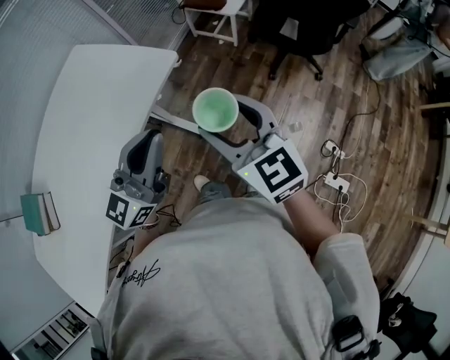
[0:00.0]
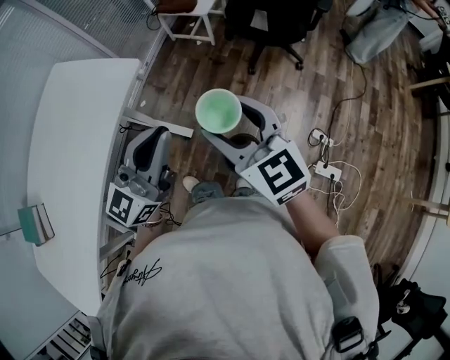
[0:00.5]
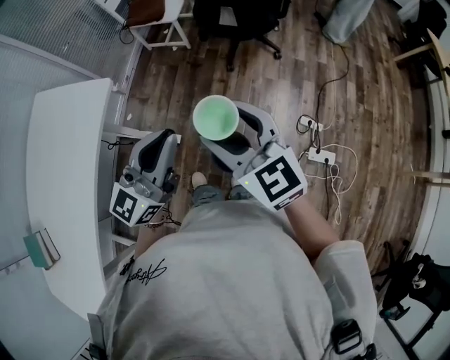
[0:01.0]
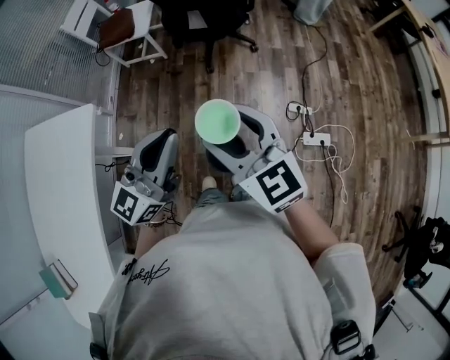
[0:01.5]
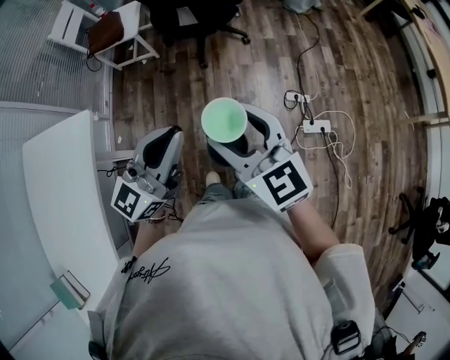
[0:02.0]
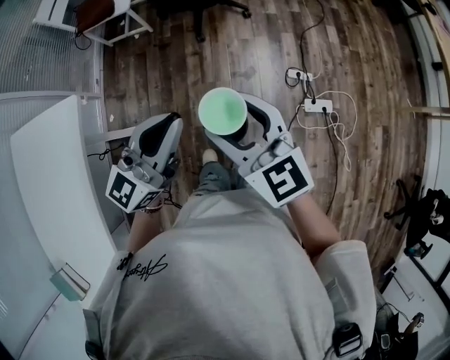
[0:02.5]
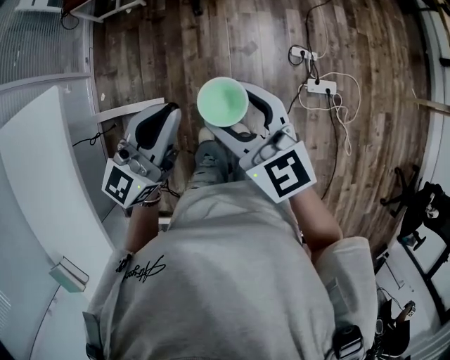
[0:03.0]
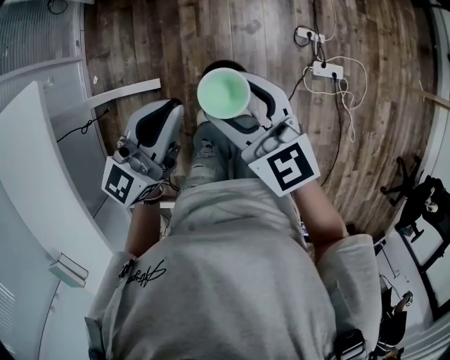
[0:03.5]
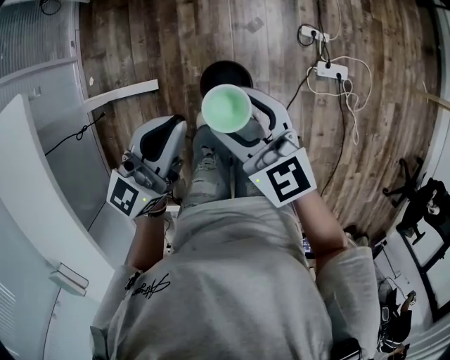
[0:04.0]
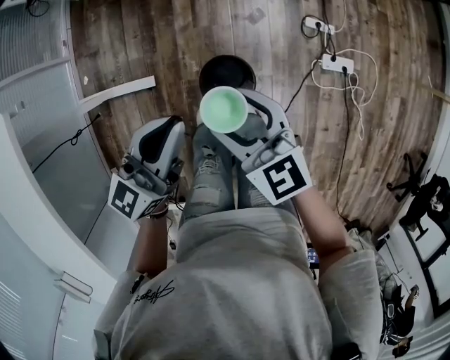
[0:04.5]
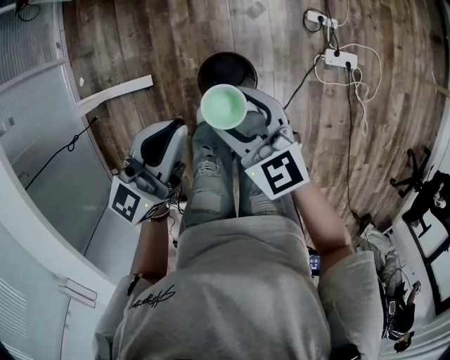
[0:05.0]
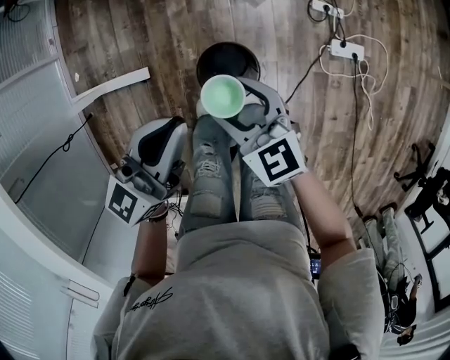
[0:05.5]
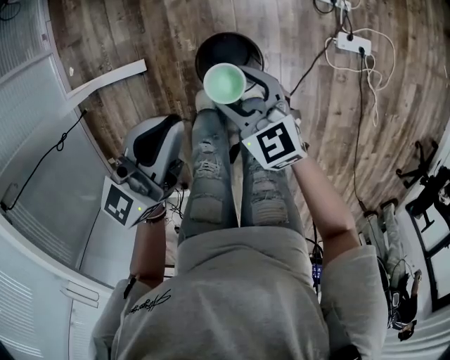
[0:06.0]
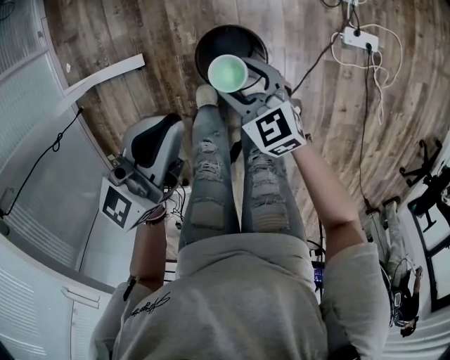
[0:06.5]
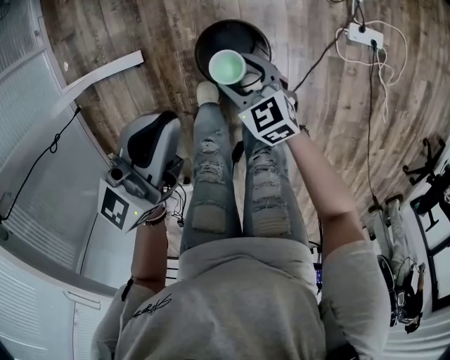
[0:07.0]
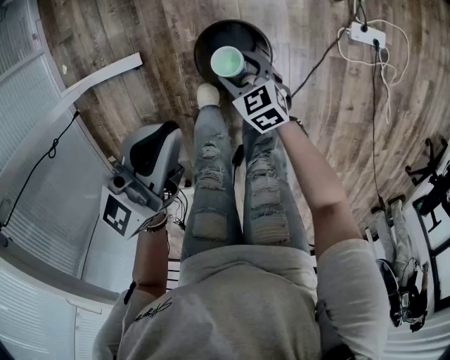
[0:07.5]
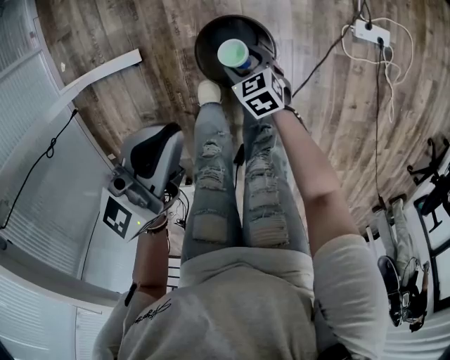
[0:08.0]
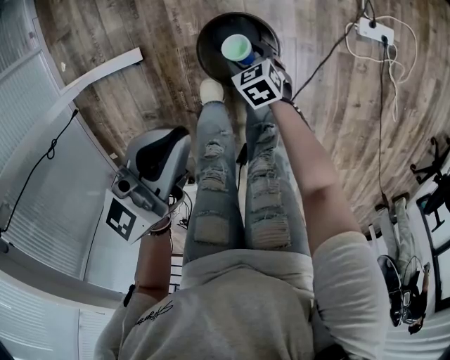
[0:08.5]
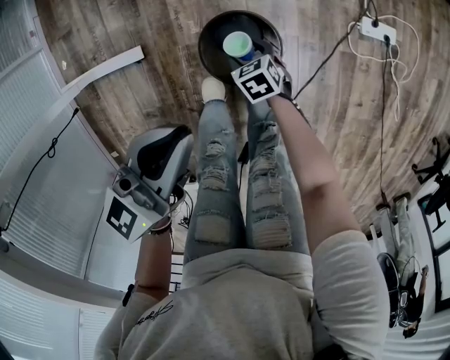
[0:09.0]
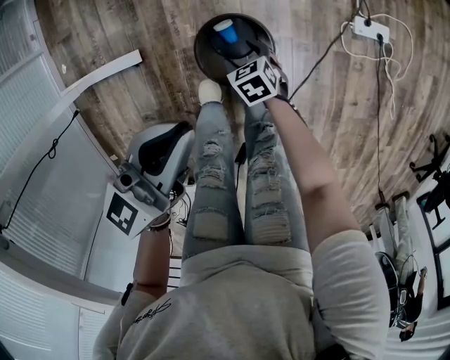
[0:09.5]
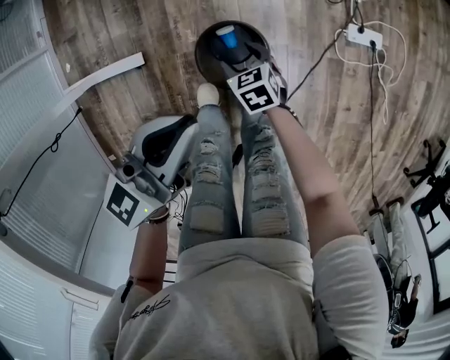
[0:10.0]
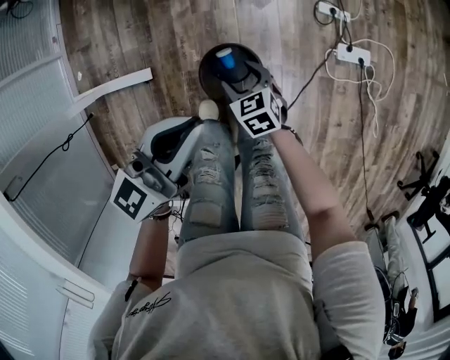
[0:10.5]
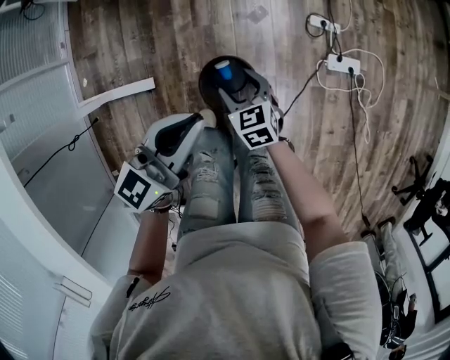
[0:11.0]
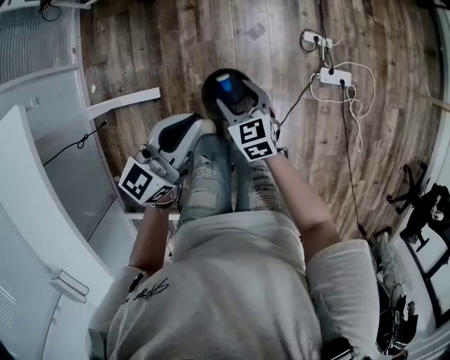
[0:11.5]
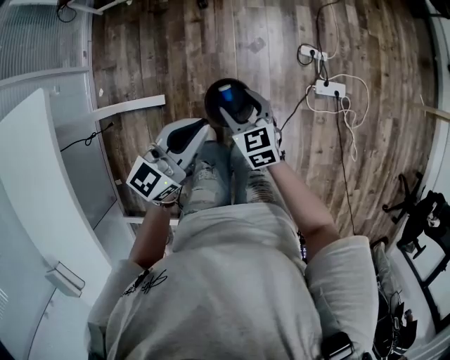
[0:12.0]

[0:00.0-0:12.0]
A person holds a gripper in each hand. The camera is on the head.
0:00.0 to 0:02.0: The right gripper moves some 20 cm, and swivels roughly 30 degrees; the left gripper shifts by roughly 25 cm, and changes its angle by about 40 degrees.
0:02.0 to 0:04.0: The two grippers go approximately 20 cm downward.
0:04.0 to 0:06.0: The left gripper heads downward, covering about 15 cm. Meanwhile the right gripper travels downward by about 25 cm.
0:06.0 to 0:08.0: The right gripper heads downward, covering some 25 cm, and changes its angle by approximately 20 degrees; the left gripper travels downward by approximately 5 cm.
0:08.0 to 0:10.0: The right gripper moves some 5 cm.
0:10.0 to 0:12.0: The left gripper heads upward, covering approximately 15 cm. Meanwhile the right gripper heads upward, covering approximately 30 cm, and changes its angle by some 20 degrees.

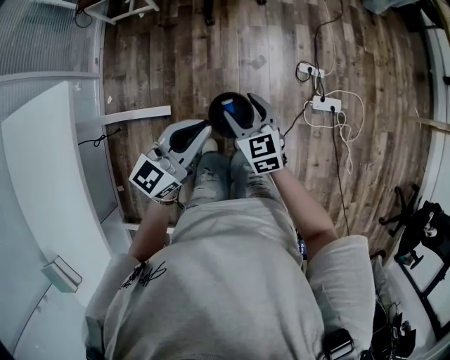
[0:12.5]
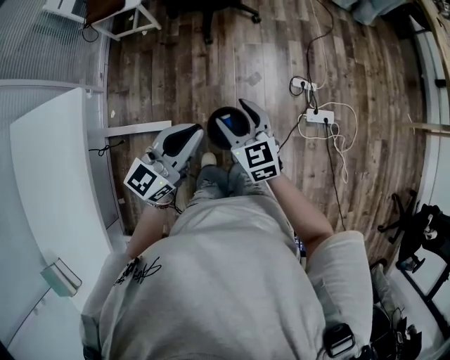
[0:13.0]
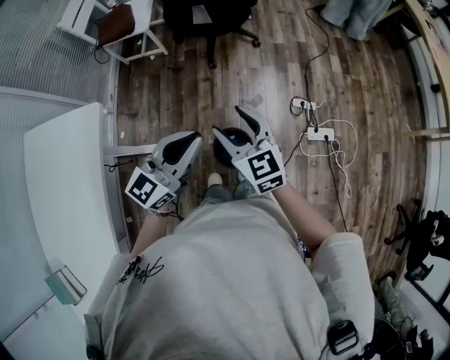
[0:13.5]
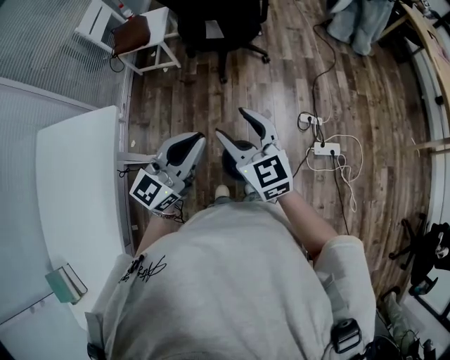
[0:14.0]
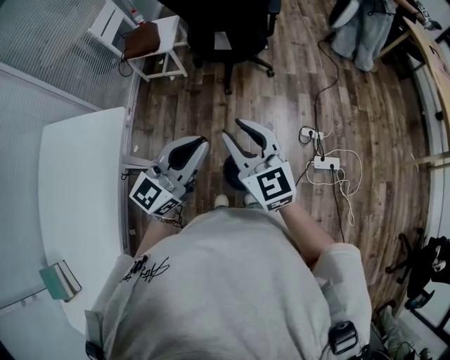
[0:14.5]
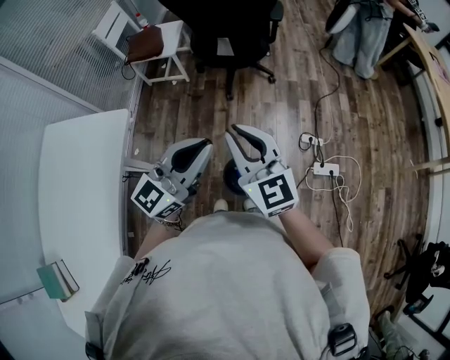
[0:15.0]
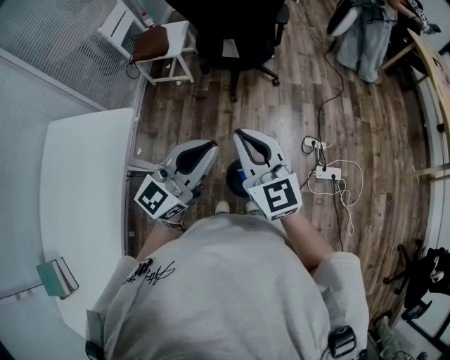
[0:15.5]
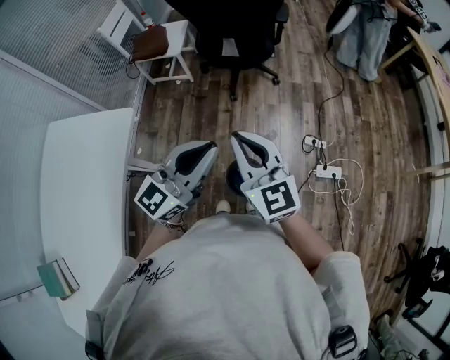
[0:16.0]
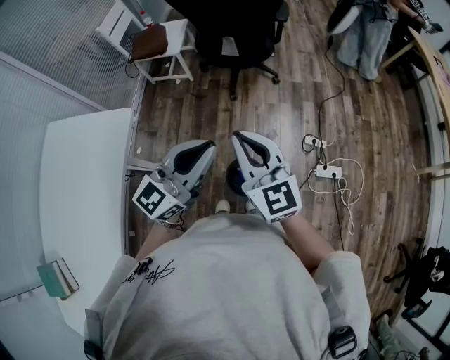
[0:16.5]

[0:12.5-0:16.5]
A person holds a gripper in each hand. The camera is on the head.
0:12.5 to 0:14.5: The right gripper is displaced upward by about 30 cm, turns by approximately 30 degrees, and closes up; the left gripper heads upward, covering some 15 cm.
0:14.5 to 0:16.5: The right gripper closes.

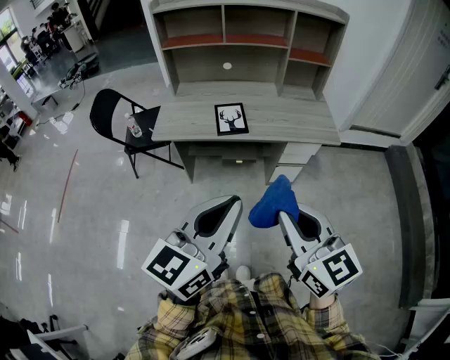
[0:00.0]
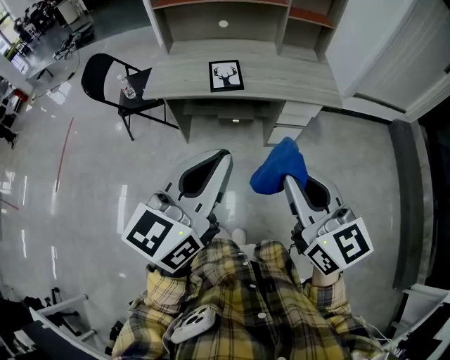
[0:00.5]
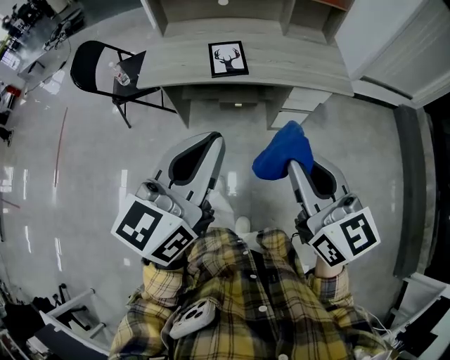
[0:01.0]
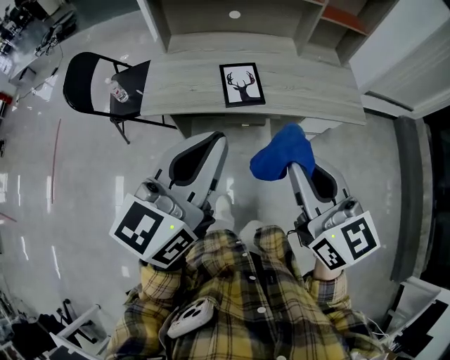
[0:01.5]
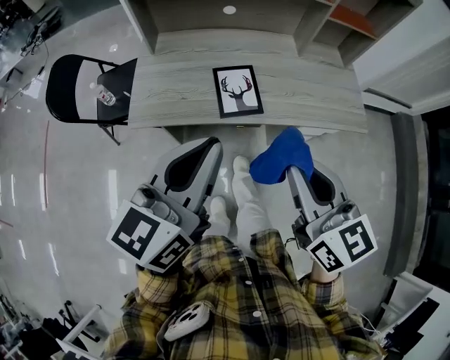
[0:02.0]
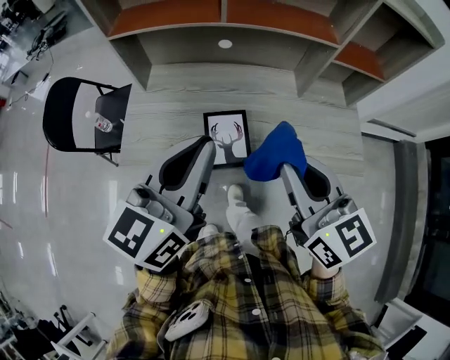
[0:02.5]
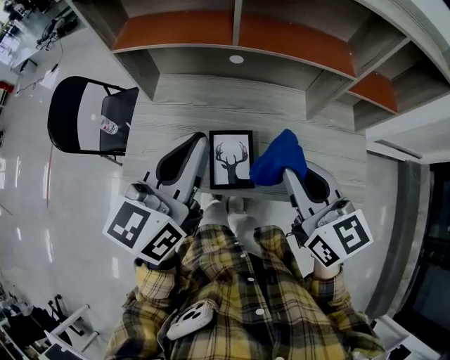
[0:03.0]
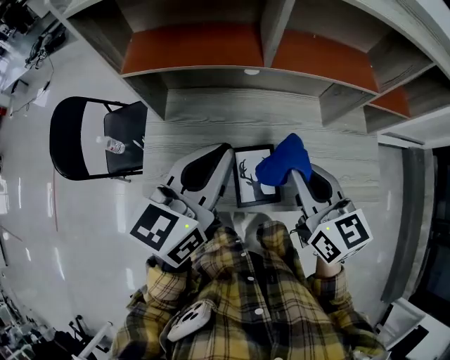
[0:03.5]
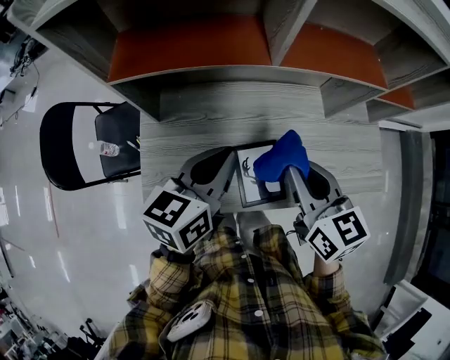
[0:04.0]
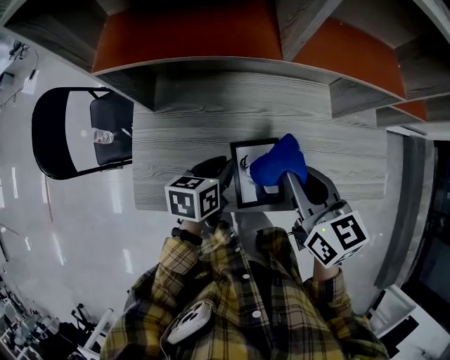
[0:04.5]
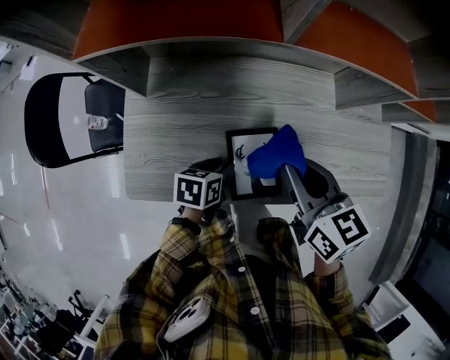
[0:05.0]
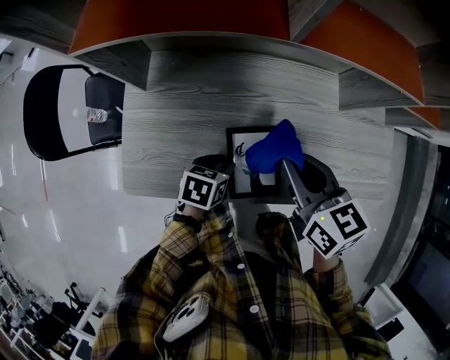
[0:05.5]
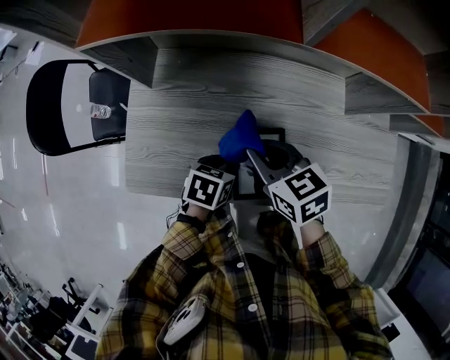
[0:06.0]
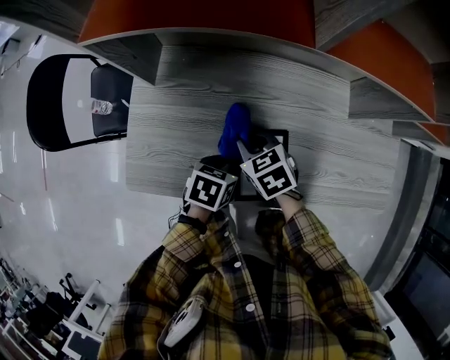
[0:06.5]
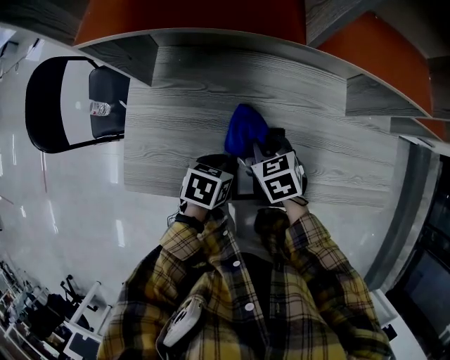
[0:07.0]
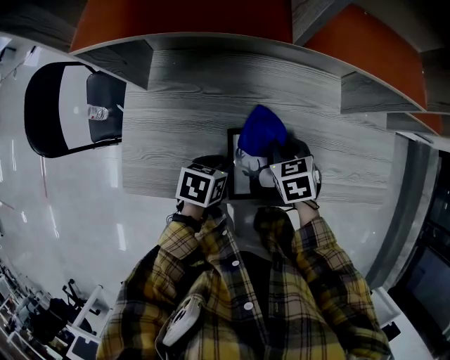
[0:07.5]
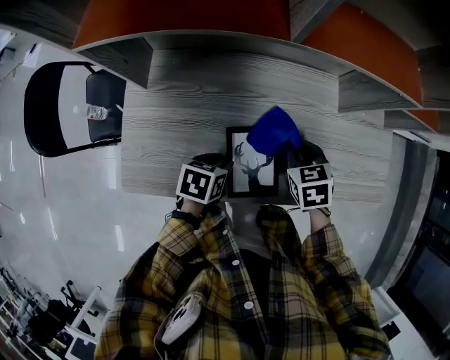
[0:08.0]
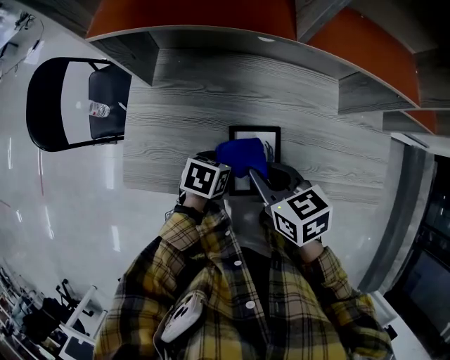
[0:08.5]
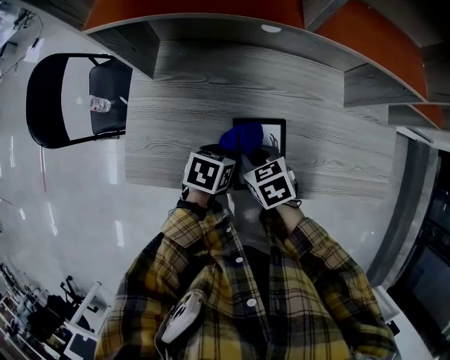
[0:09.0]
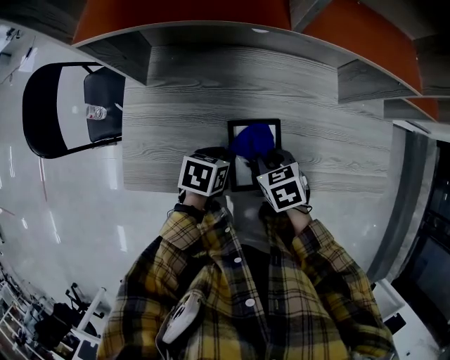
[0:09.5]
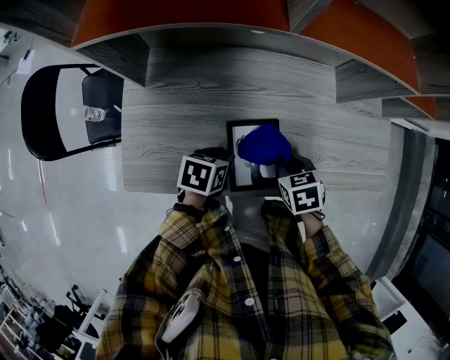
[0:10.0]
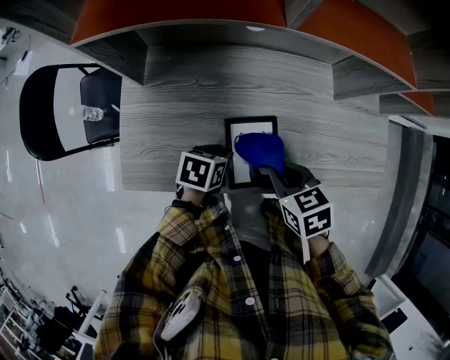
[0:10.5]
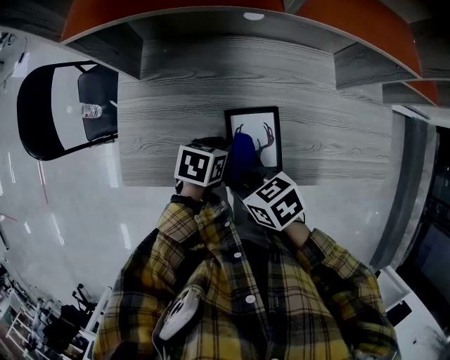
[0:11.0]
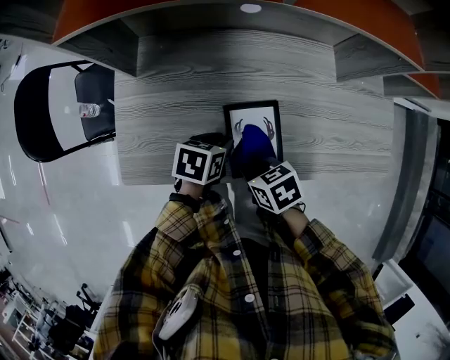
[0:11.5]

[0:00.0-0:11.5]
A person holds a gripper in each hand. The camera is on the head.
0:00.0 to 0:02.0: The two grippers go roughly 30 cm forward.
0:02.0 to 0:04.0: The two grippers go about 30 cm forward.
0:04.0 to 0:06.0: The right gripper moves downward and to the left, some 15 cm, and turns by roughly 30 degrees. The left gripper shifts some 25 cm downward, points its fingers approximately 40 degrees further downward, and opens up.
0:06.0 to 0:07.5: The right gripper goes approximately 15 cm downward and to the right, and swivels some 30 degrees.
0:07.5 to 0:09.5: The right gripper is displaced backward by about 5 cm, and moves approximately 10 cm to the left and comes back.
0:09.5 to 0:11.5: The right gripper moves some 10 cm upward and comes back, and turns by about 20 degrees.
